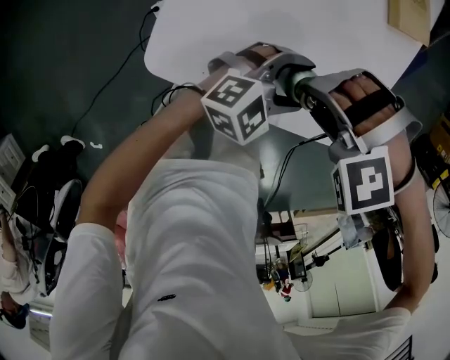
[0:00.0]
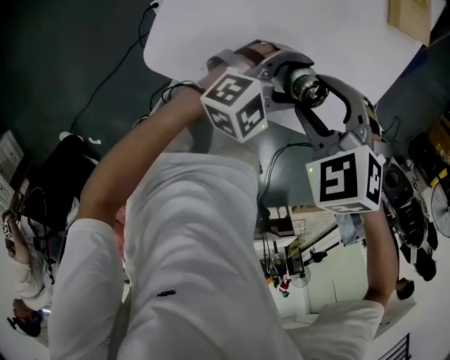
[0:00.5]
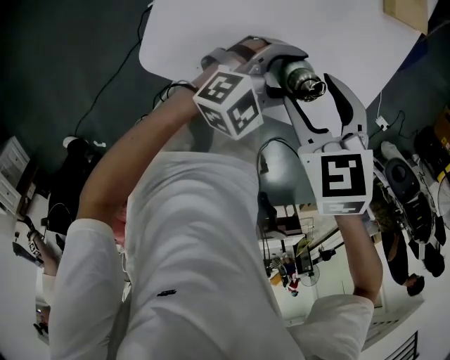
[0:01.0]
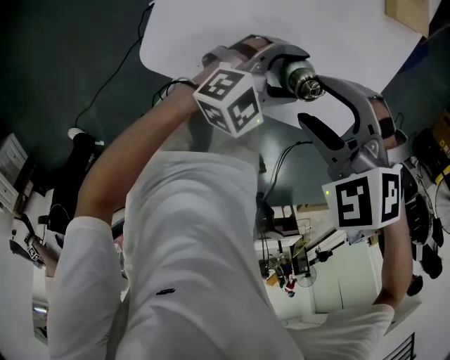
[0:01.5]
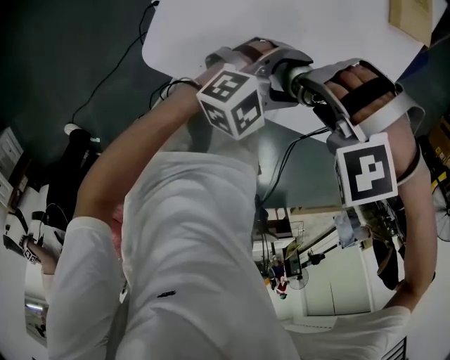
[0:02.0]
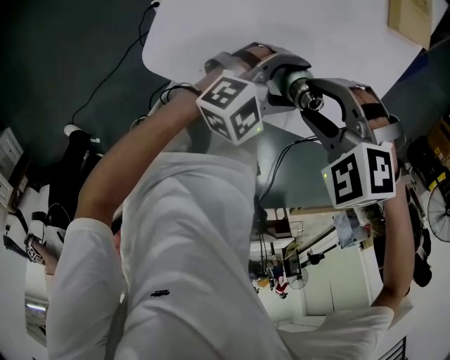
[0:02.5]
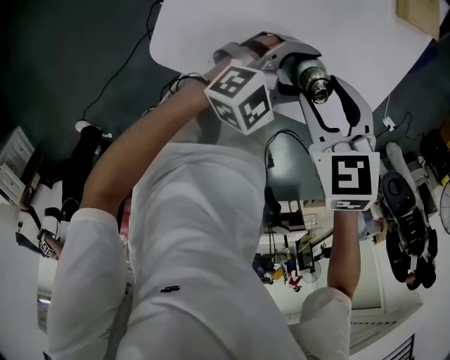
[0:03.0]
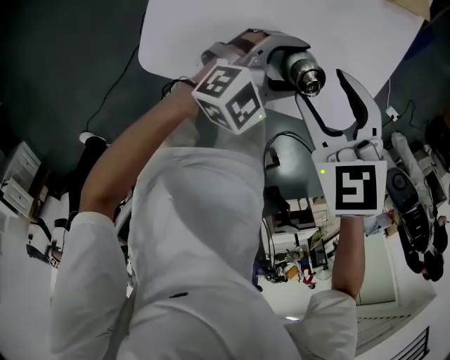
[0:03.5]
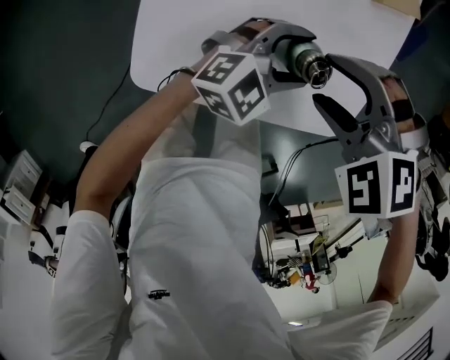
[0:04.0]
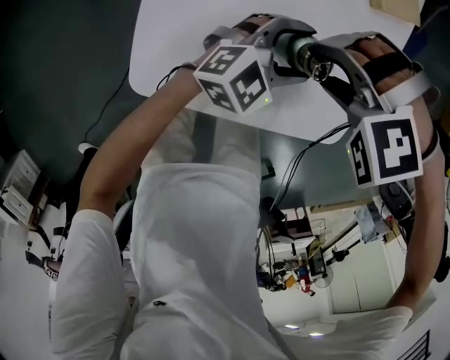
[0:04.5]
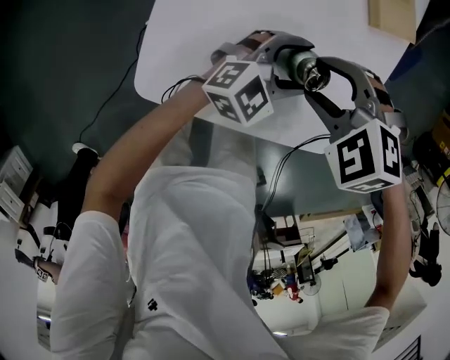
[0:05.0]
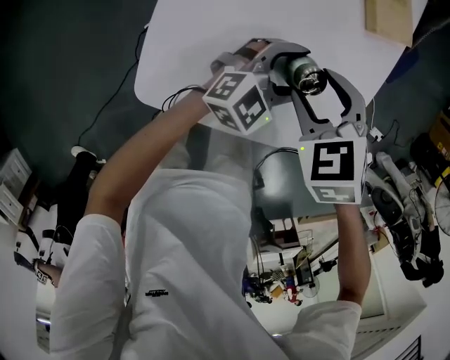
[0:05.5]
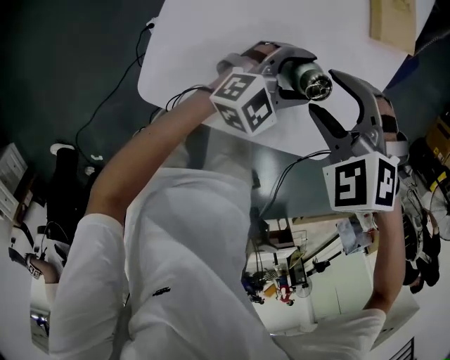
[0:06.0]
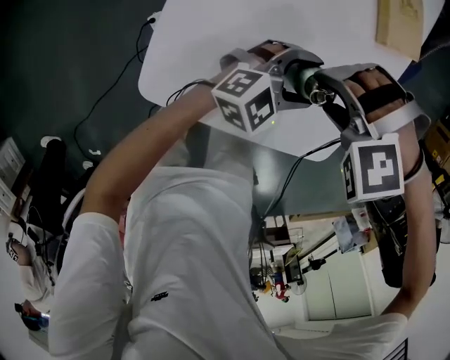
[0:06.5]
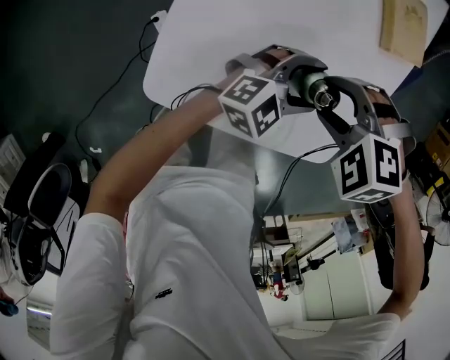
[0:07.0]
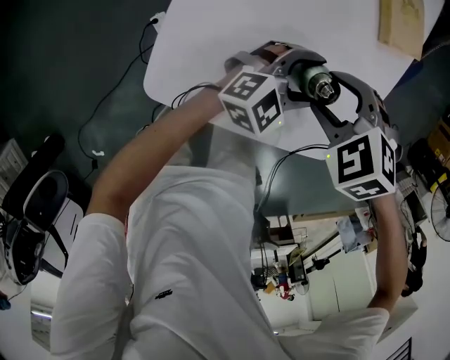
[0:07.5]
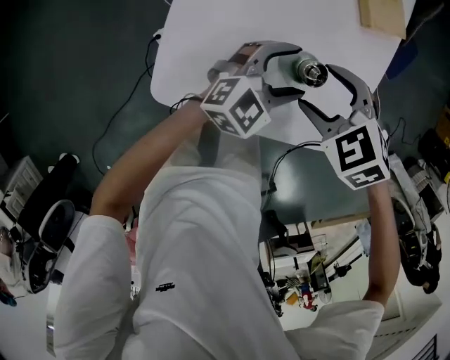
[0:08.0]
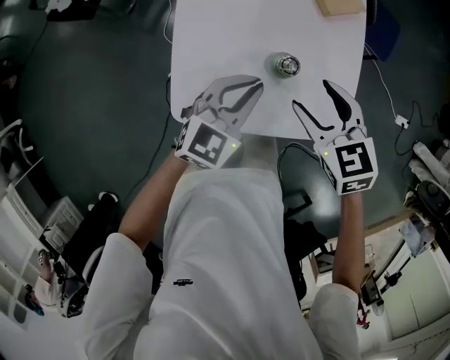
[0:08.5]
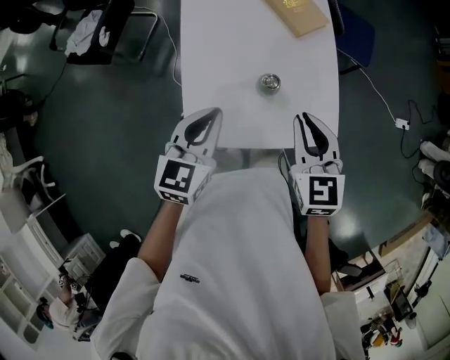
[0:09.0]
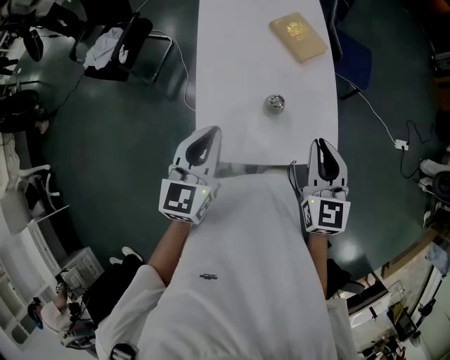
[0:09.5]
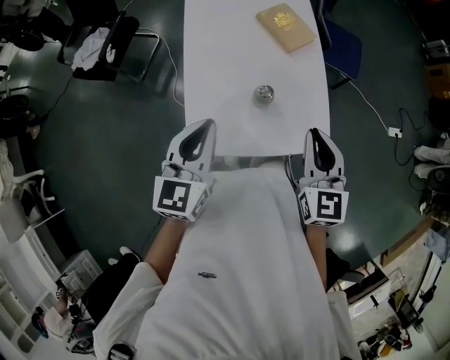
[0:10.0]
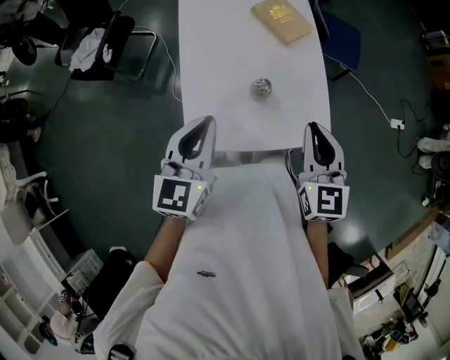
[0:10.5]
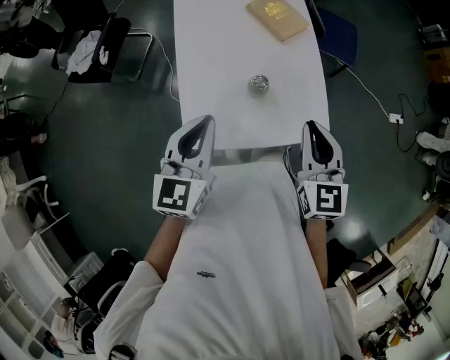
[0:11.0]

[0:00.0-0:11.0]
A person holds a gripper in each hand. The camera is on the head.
0:02.0 to 0:03.5: The right gripper twists approximately 90 degrees clockwise, seen from behind.
0:03.5 to 0:05.5: The left gripper moves some 10 cm. The right gripper moves approximately 10 cm.
0:05.5 to 0:07.5: The right gripper changes its angle by about 30 degrees.
0:07.5 to 0:09.0: The grippers both shift upward by approximately 25 cm. The right gripper angles its fingers upward, by some 50 degrees, and closes up; the left gripper rotates roughly 30 degrees, and closes its fingers.
0:09.0 to 0:11.0: The left gripper moves upward, about 5 cm. Meanwhile the right gripper moves approximately 10 cm.

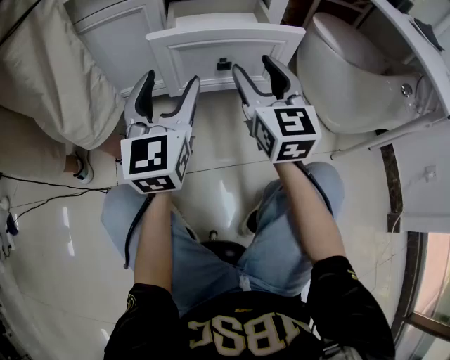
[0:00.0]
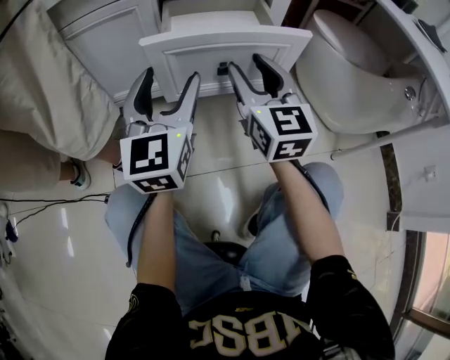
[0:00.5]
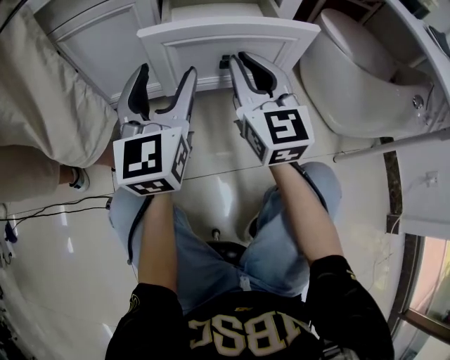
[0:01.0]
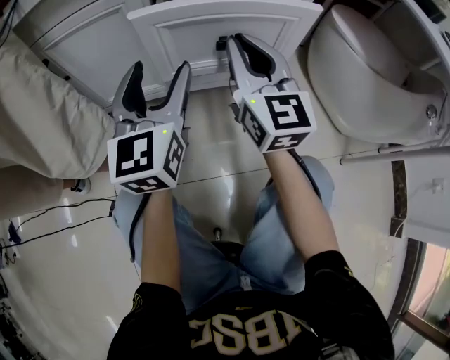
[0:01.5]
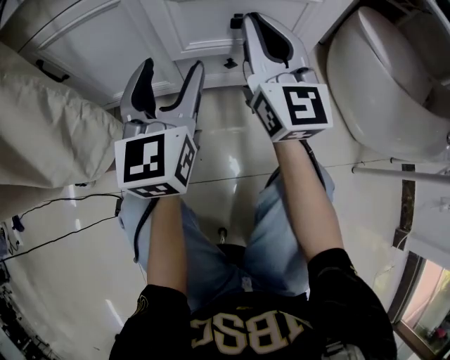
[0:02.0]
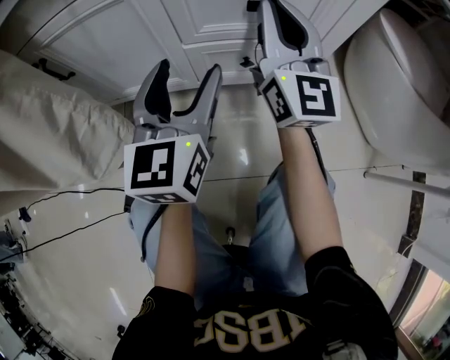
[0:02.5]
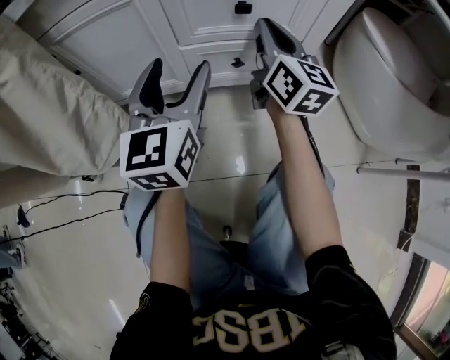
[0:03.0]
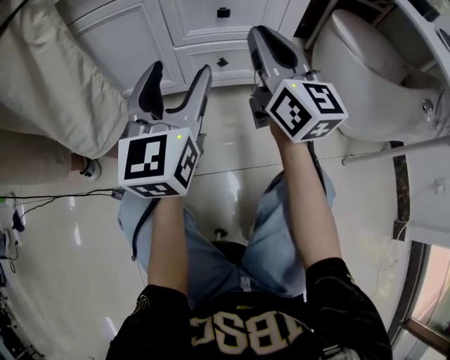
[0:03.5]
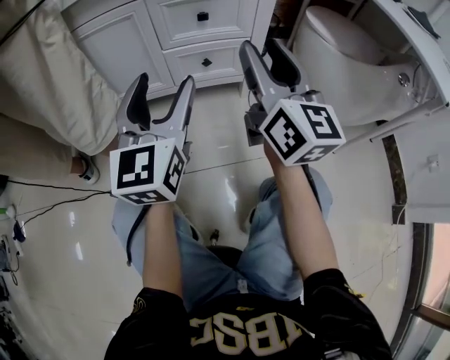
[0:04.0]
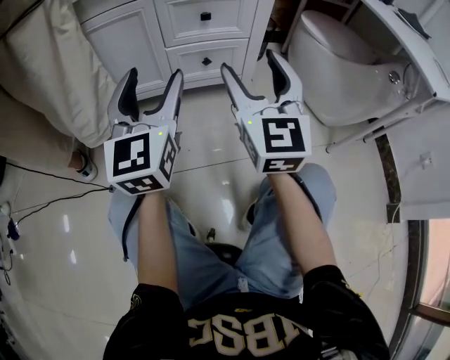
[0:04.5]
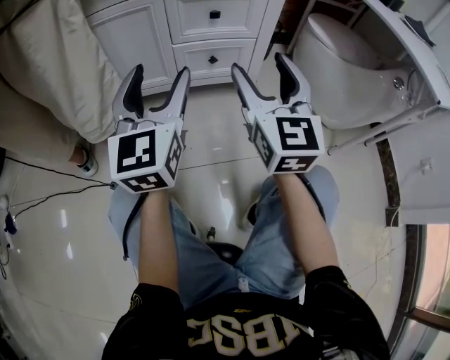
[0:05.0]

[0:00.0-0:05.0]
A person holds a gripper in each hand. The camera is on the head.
0:00.0 to 0:02.5: The right gripper is displaced forward by approximately 25 cm, changes its angle by some 20 degrees, and closes, while the left gripper is displaced forward and downward by roughly 20 cm.
0:02.5 to 0:05.0: The left gripper travels backward and upward by about 25 cm; the right gripper heads backward, covering about 30 cm, and opens its fingers.

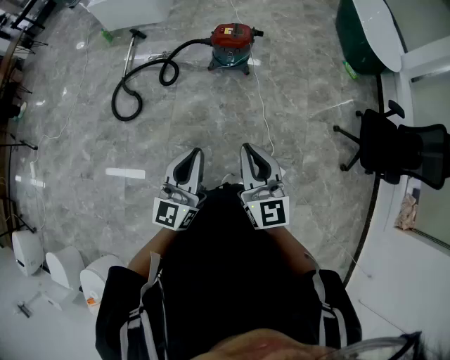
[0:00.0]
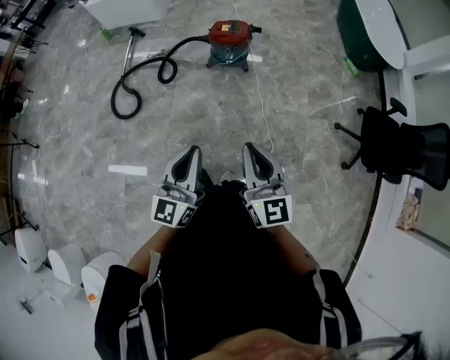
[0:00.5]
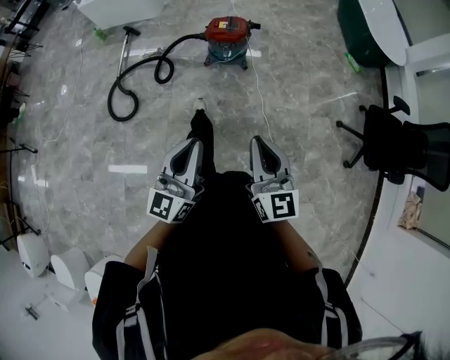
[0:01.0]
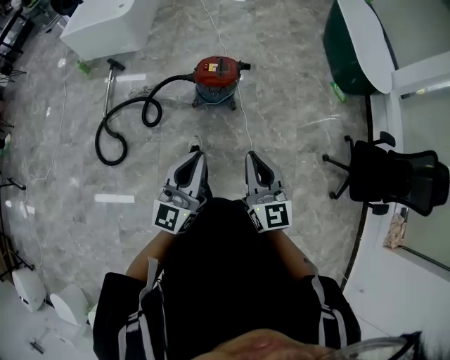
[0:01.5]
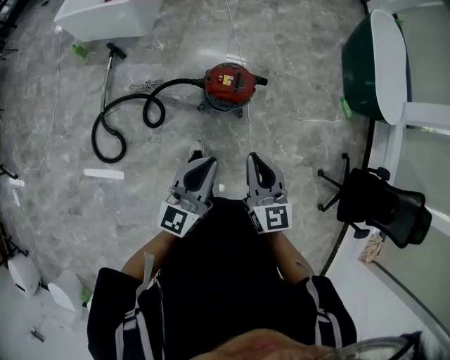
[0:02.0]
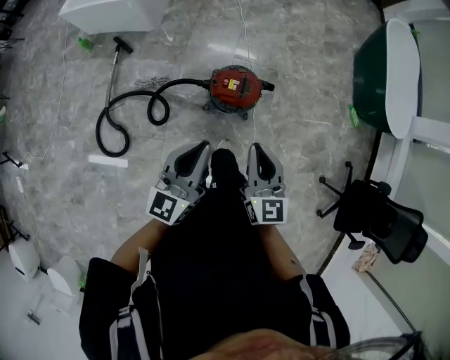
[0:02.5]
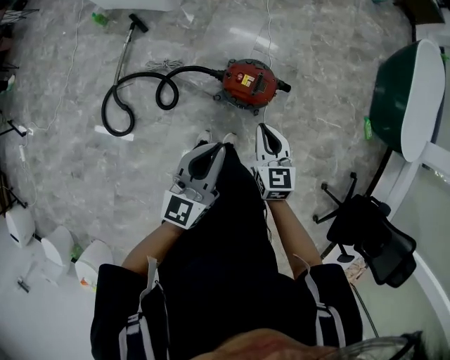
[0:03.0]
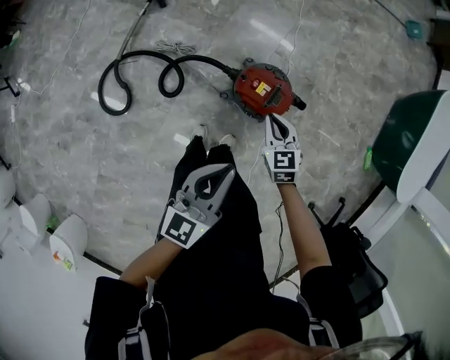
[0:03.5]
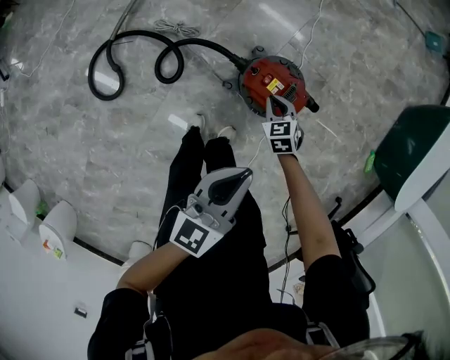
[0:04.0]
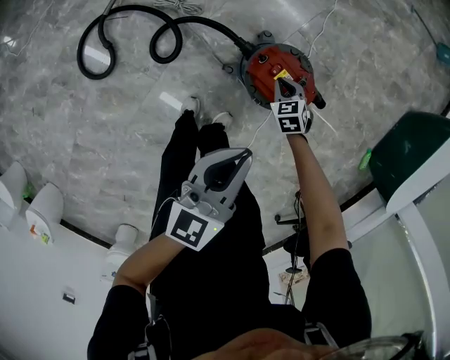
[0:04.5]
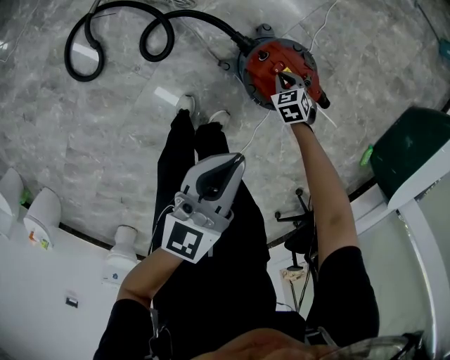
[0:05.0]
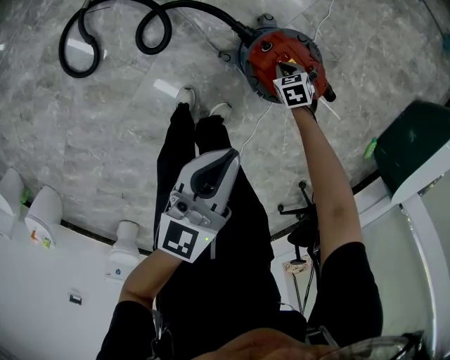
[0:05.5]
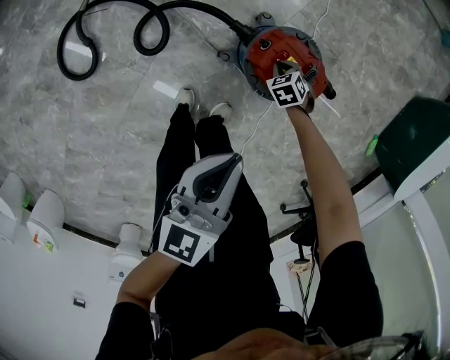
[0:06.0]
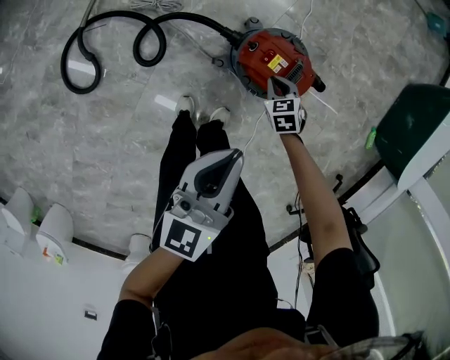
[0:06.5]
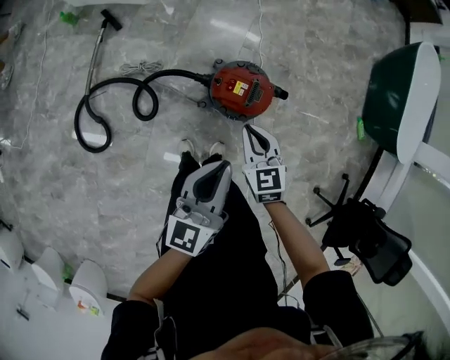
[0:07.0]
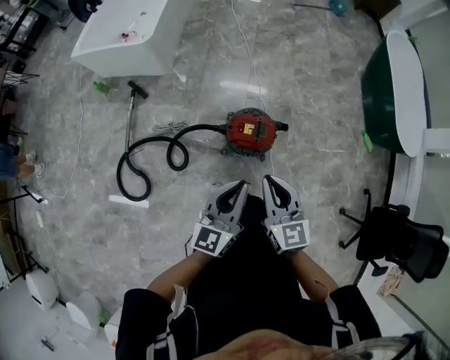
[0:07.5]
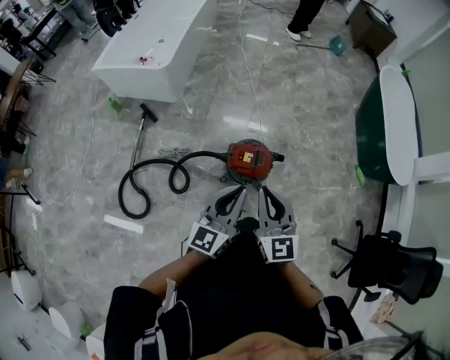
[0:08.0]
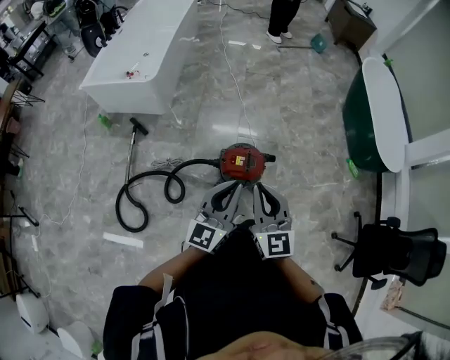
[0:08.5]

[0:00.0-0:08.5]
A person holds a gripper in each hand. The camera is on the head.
0:00.0 to 0:02.0: The two grippers travel together, forward, about 50 cm.
0:02.0 to 0:04.0: The right gripper heads downward and forward, covering about 50 cm, and angles its fingers downward, by approximately 40 degrees, while the left gripper is displaced forward and downward by some 25 cm, and swivels about 20 degrees.
0:04.0 to 0:06.5: The right gripper moves downward, approximately 10 cm. Meanwhile the left gripper heads downward, covering roughly 5 cm.
0:06.5 to 0:08.5: The right gripper is displaced upward by roughly 60 cm, and tips its fingers upward by some 60 degrees. Meanwhile the left gripper heads upward, covering roughly 30 cm, and turns by about 30 degrees.

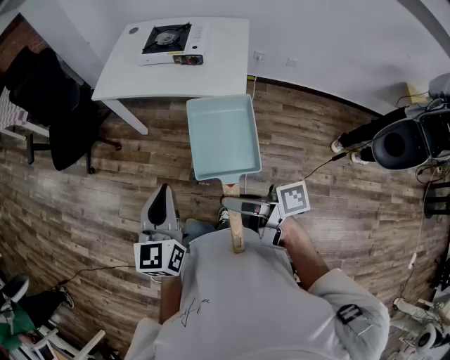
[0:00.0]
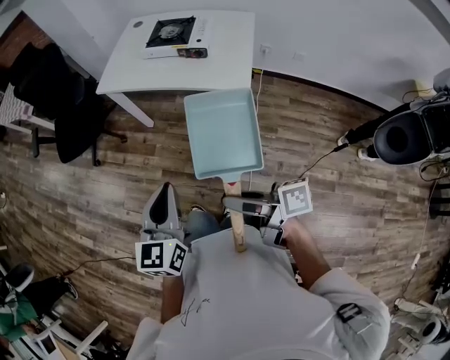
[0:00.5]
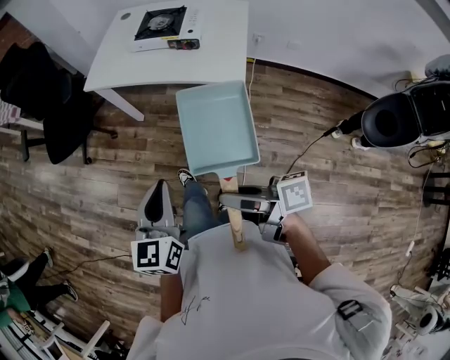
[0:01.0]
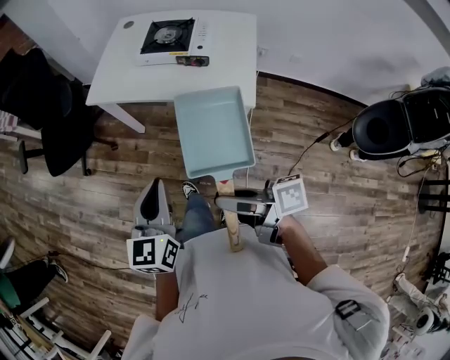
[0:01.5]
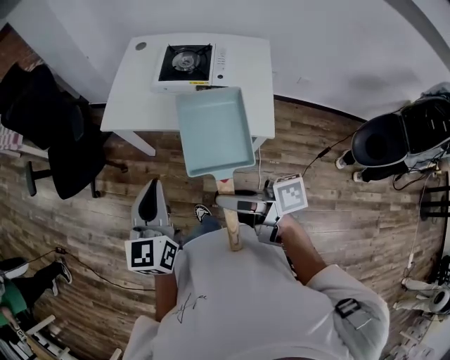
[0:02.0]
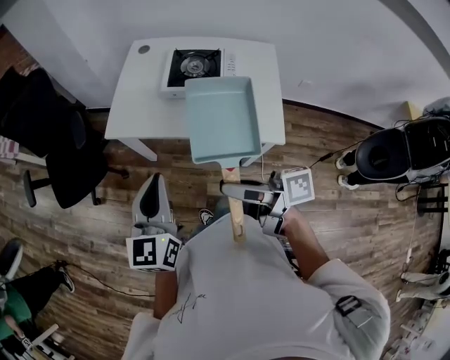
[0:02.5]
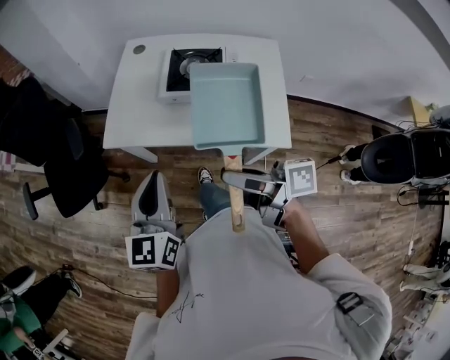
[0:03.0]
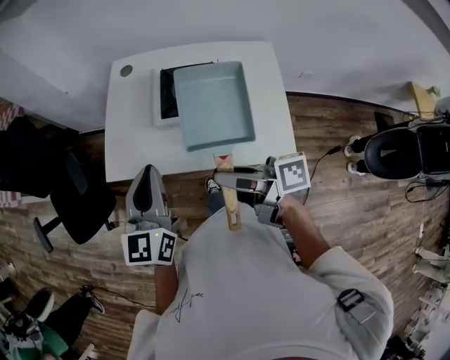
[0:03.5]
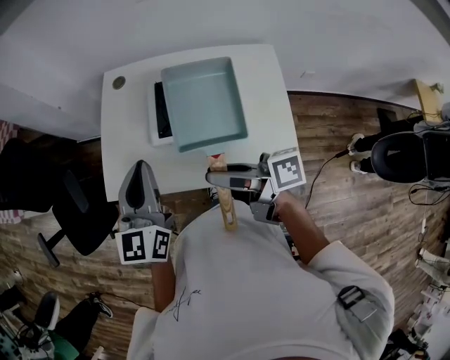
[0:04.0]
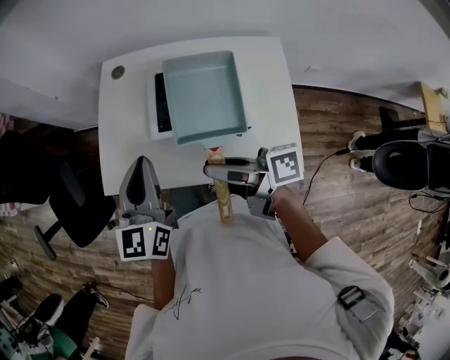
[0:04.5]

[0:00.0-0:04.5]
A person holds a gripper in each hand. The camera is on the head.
0:00.0 to 0:02.0: Both grippers travel together forward, about 25 cm.
0:02.0 to 0:04.5: The two grippers go about 35 cm forward.
